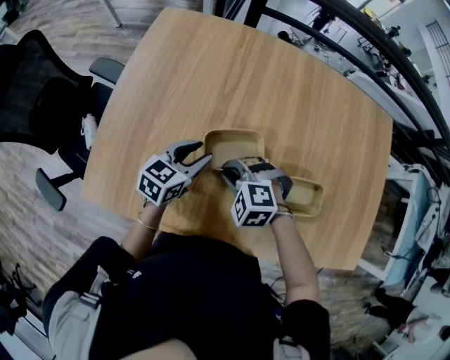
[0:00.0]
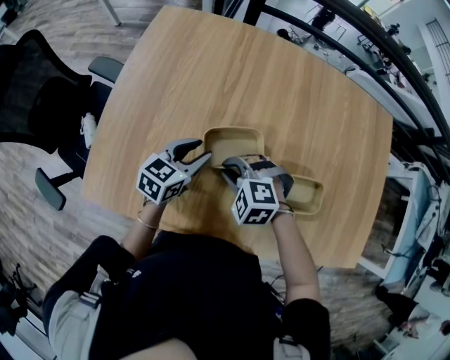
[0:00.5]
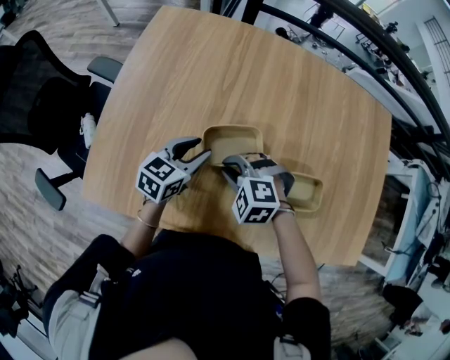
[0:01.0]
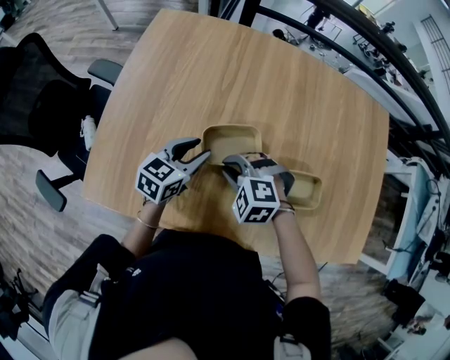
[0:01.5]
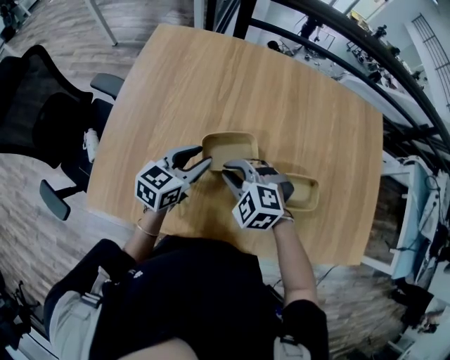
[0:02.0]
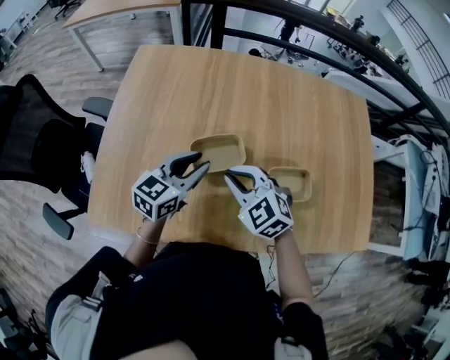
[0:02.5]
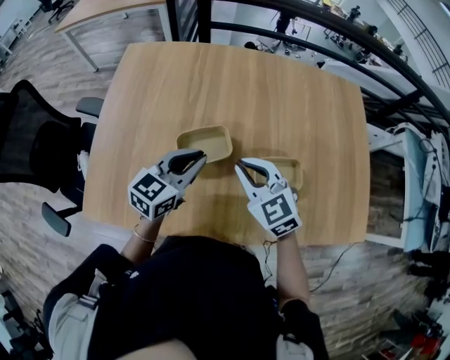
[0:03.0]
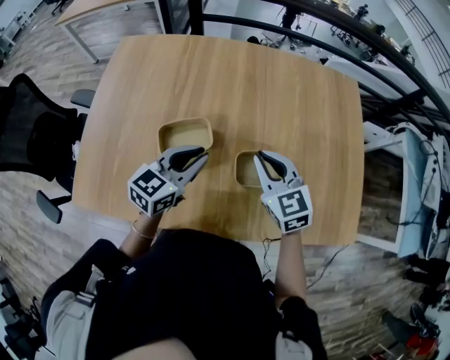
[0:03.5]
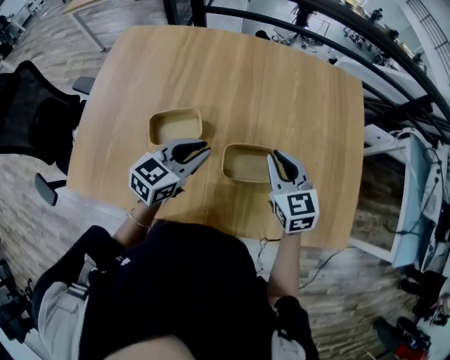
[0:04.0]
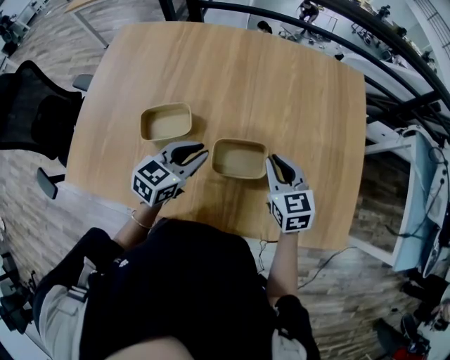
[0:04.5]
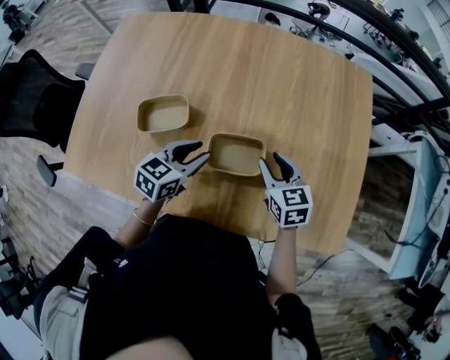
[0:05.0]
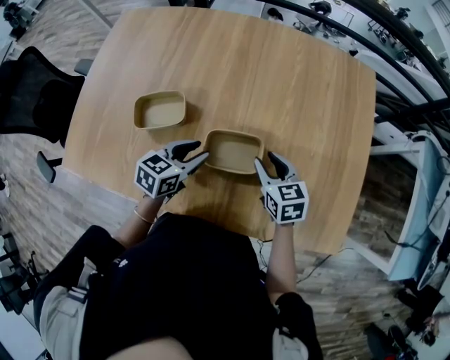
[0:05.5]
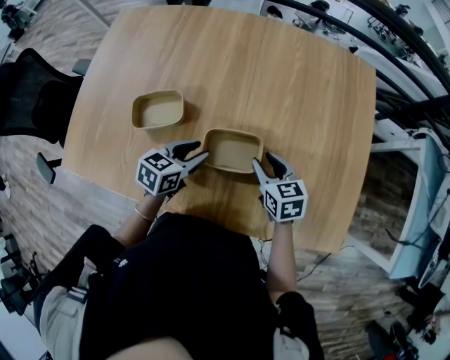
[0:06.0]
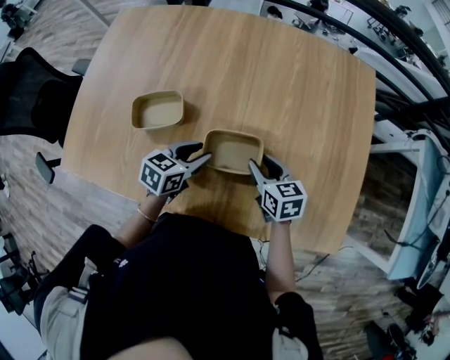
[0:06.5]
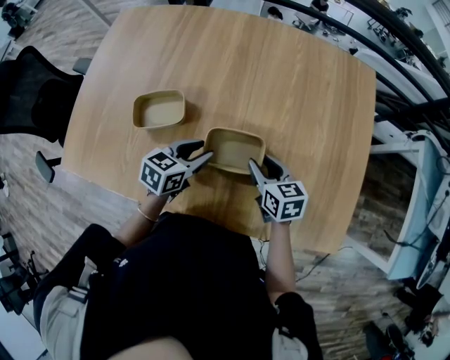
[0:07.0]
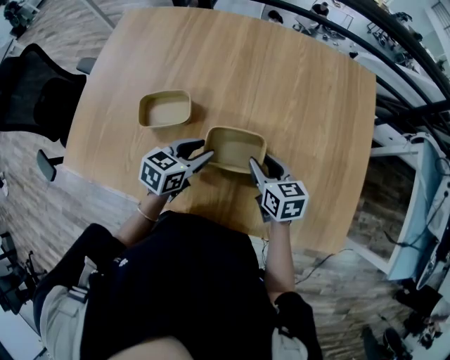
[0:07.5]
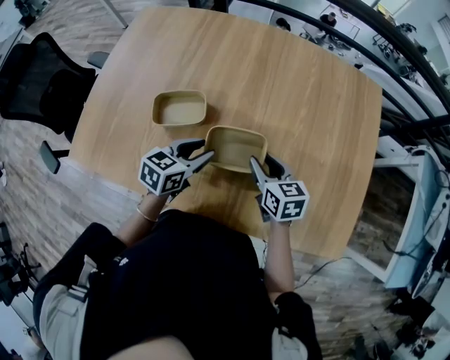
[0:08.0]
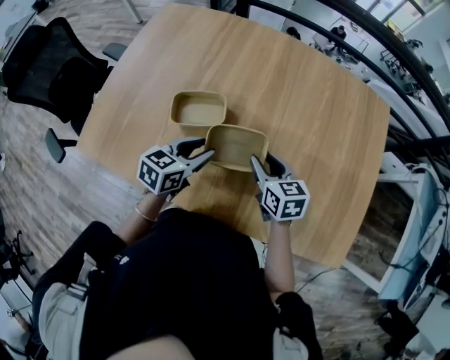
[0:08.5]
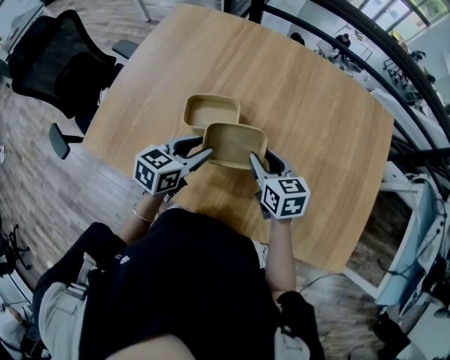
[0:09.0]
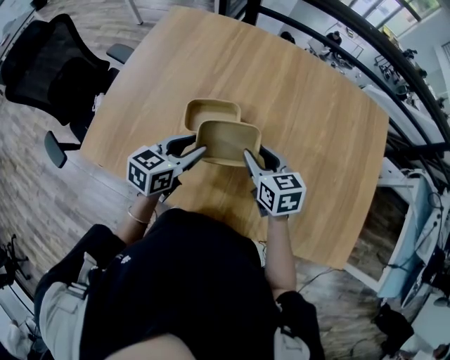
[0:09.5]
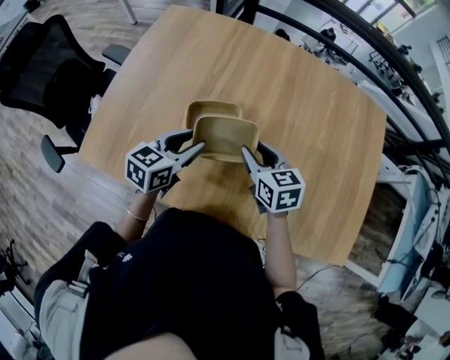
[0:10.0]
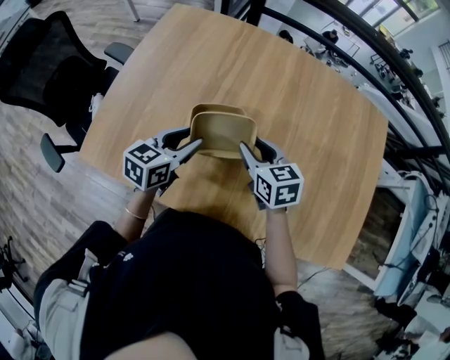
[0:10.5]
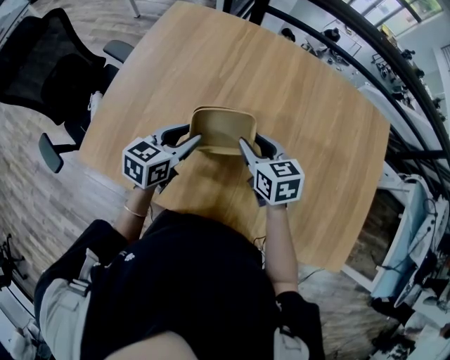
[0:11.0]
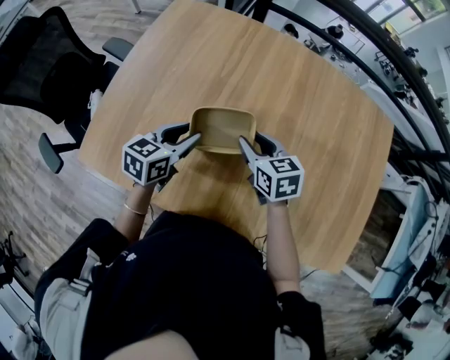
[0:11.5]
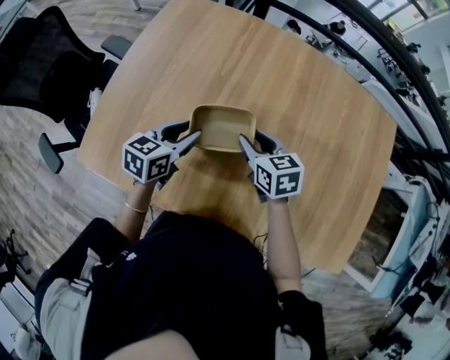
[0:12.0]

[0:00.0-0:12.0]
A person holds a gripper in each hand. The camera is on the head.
0:00.0 to 0:02.0: The left gripper changes place by some 5 cm.
0:02.0 to 0:04.0: The right gripper is displaced to the right by some 30 cm, and rolls clockwise, seen from behind, by some 50 degrees, while the left gripper heads to the right, covering approximately 20 cm, and closes.
0:04.0 to 0:06.0: The grippers both shift downward by about 10 cm. The left gripper changes its angle by some 20 degrees, and opens. The right gripper changes its angle by approximately 20 degrees, and opens up.
0:06.0 to 0:08.0: The left gripper ends up some 5 cm from where it was; the right gripper goes about 5 cm to the left.
0:08.0 to 0:10.0: The grippers both shift to the left by about 15 cm.
0:10.0 to 0:12.0: Both grippers travel together forward, some 5 cm.

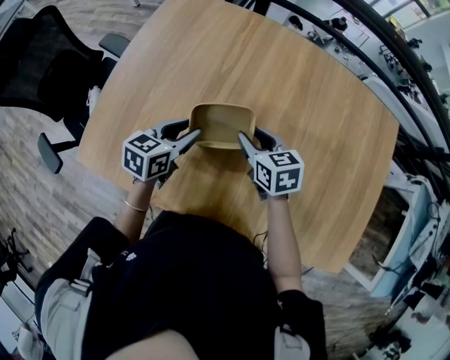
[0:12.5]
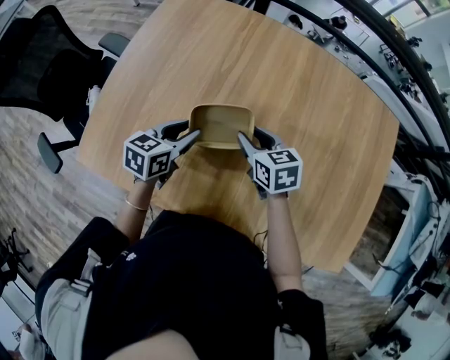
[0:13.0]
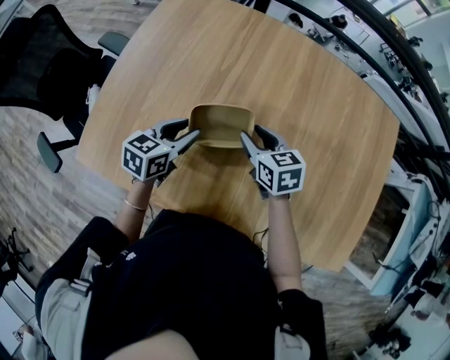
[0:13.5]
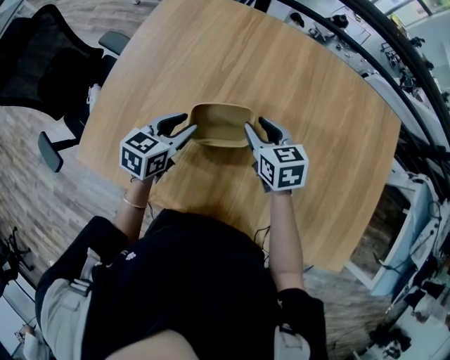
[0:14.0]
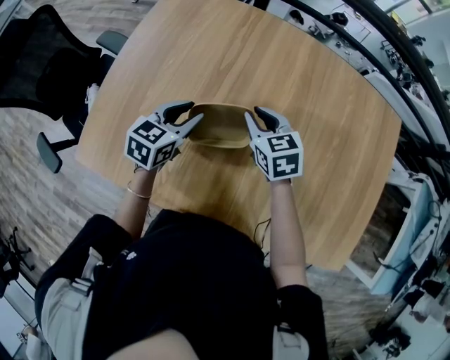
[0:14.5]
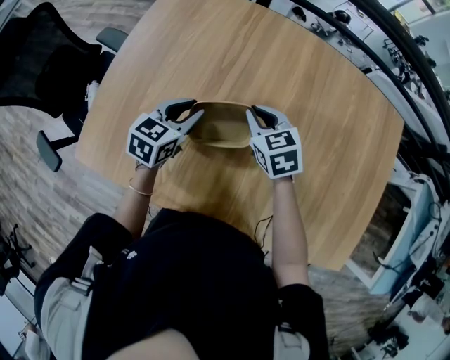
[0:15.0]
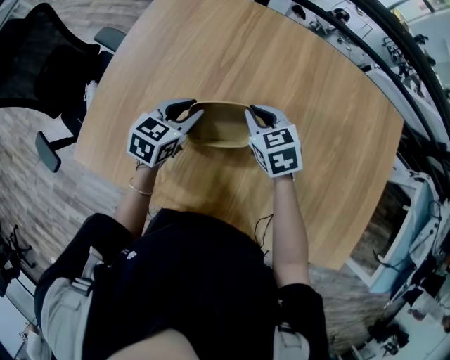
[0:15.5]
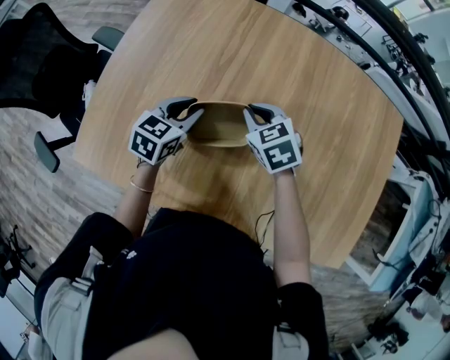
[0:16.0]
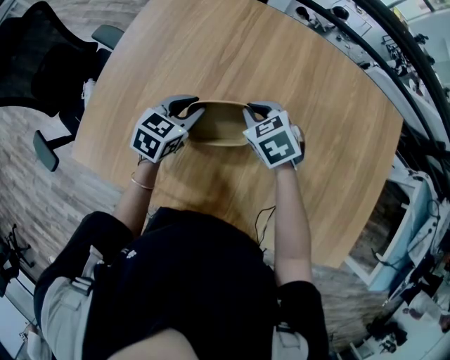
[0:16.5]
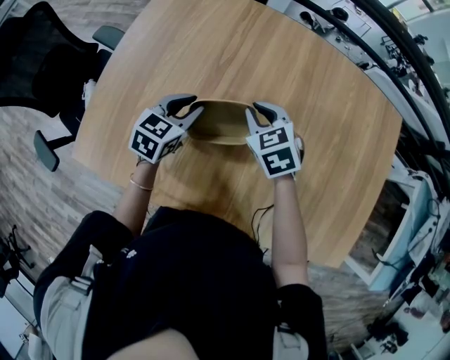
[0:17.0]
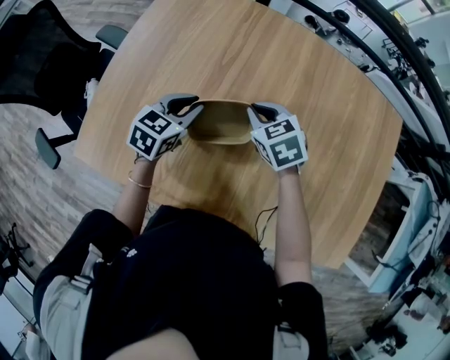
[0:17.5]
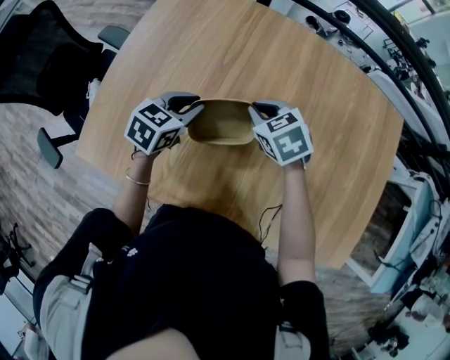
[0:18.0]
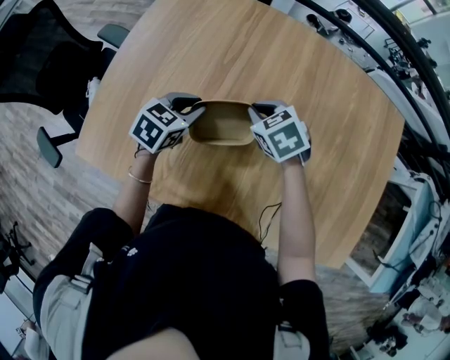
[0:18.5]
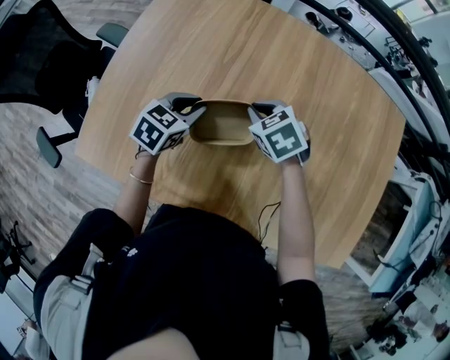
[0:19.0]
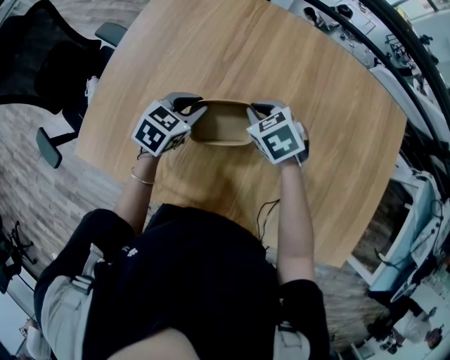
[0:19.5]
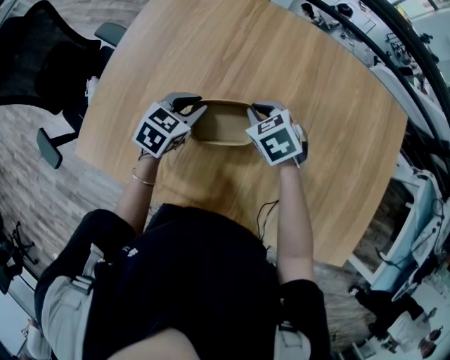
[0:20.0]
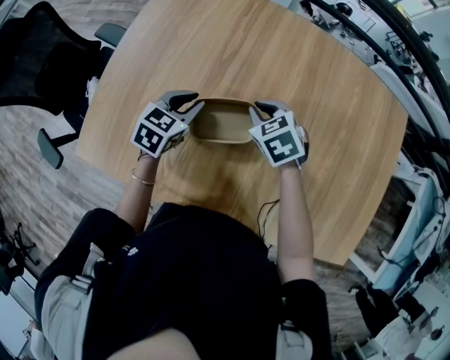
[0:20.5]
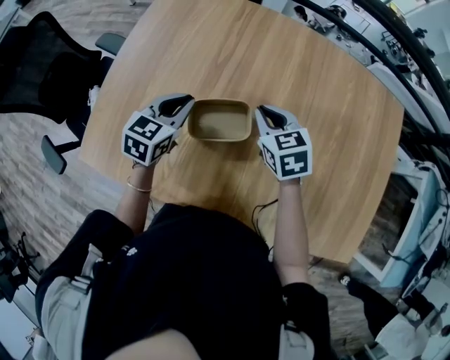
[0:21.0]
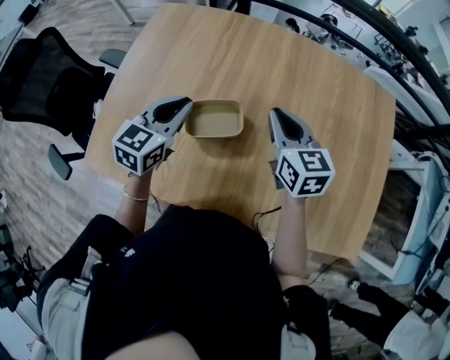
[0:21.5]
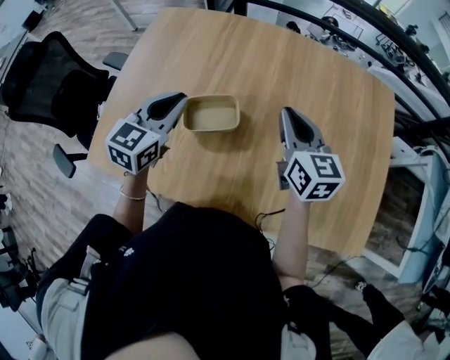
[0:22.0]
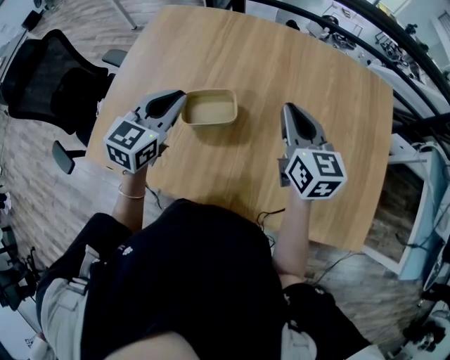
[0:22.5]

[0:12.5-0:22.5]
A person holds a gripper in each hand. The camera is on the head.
0:12.5 to 0:14.5: The right gripper ends up about 5 cm from where it was.
0:14.5 to 0:16.5: The right gripper swivels approximately 20 degrees.
0:16.5 to 0:20.5: The grippers move only a little.
0:20.5 to 0:22.5: The left gripper travels upward and backward by about 15 cm. The right gripper moves upward, to the right and backward, some 20 cm, and tilts its fingers approximately 40 degrees upward.

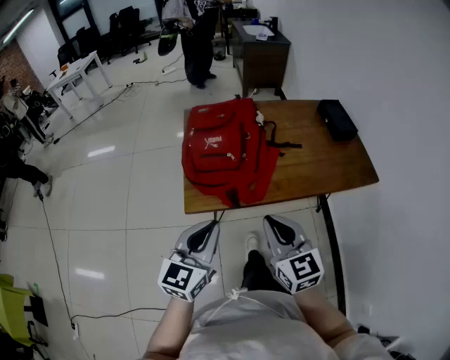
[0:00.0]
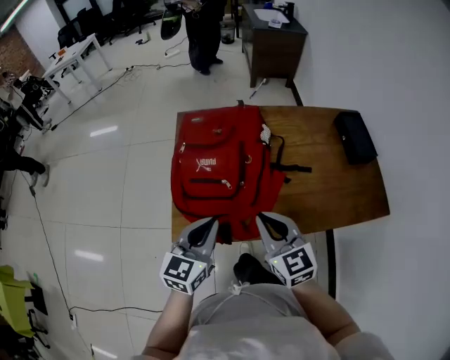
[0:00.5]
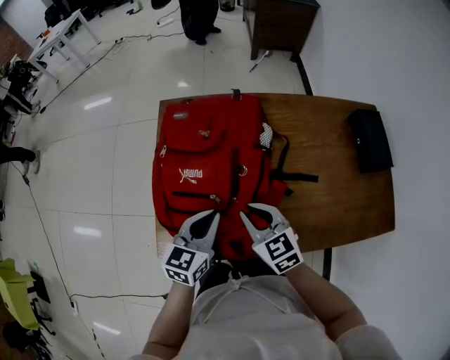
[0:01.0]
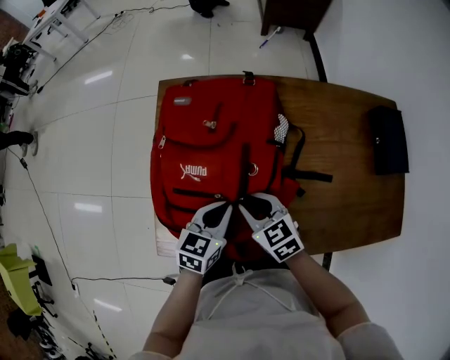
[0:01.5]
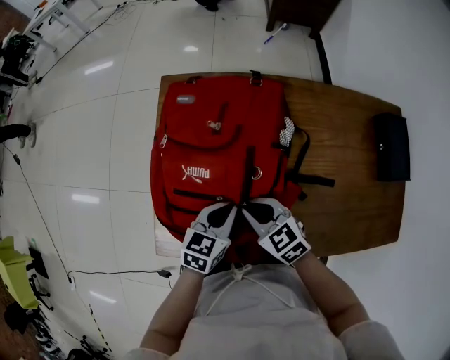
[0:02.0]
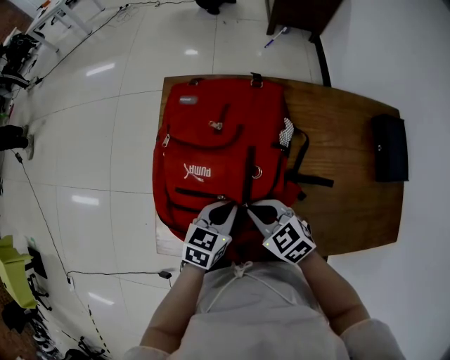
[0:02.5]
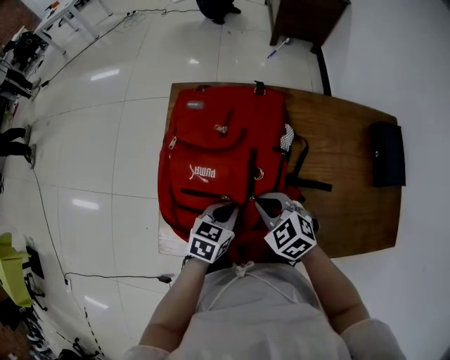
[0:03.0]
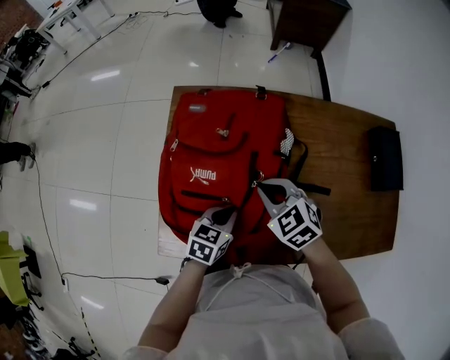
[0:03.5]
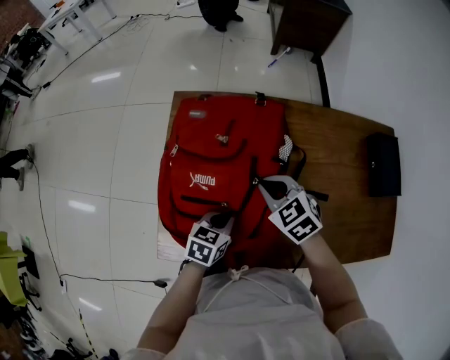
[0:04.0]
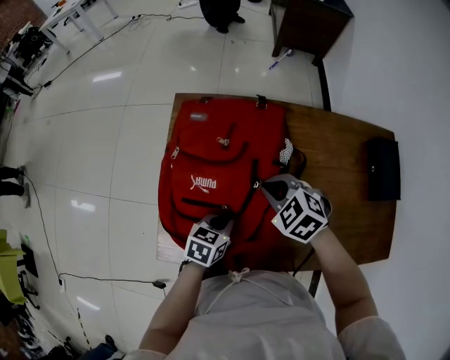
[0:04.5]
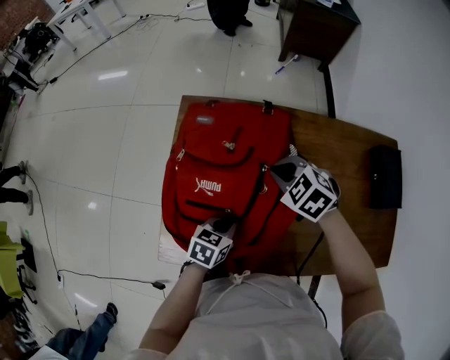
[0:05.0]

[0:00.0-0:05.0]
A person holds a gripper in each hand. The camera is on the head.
0:00.0 to 0:02.5: The grippers both shift forward and downward by roughly 40 cm. The right gripper angles its fingers downward, by roughly 30 degrees, and opens, then closes again; the left gripper turns by roughly 30 degrees.
0:02.5 to 0:05.0: The right gripper travels forward by some 15 cm, and changes its angle by approximately 20 degrees.
